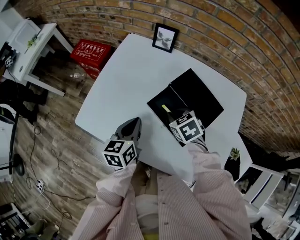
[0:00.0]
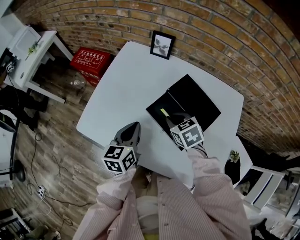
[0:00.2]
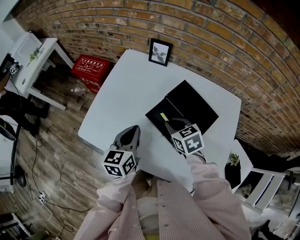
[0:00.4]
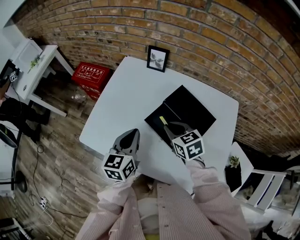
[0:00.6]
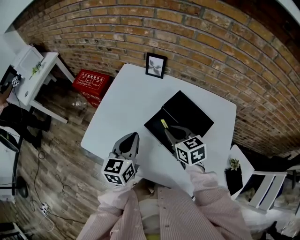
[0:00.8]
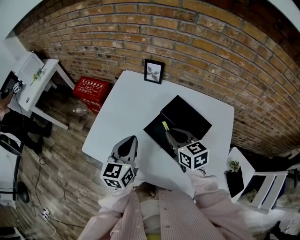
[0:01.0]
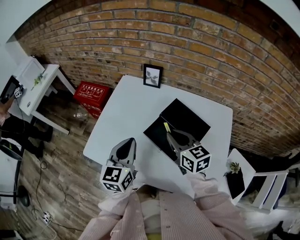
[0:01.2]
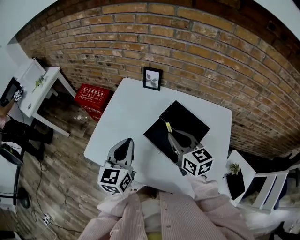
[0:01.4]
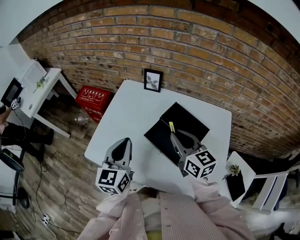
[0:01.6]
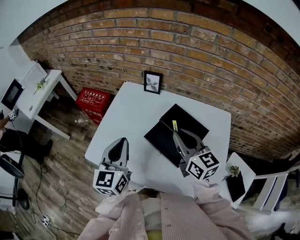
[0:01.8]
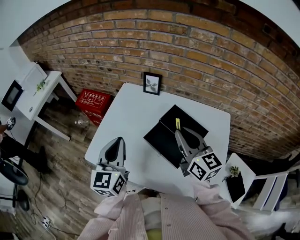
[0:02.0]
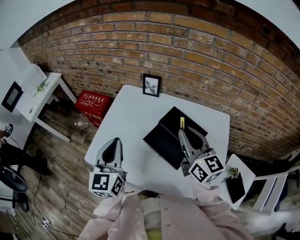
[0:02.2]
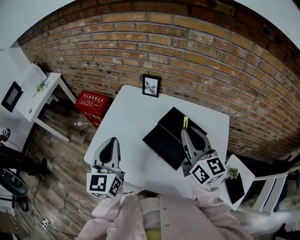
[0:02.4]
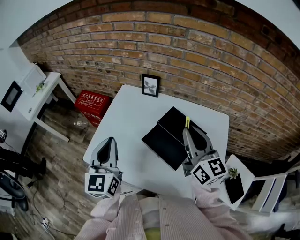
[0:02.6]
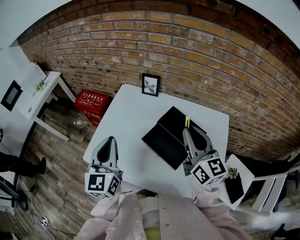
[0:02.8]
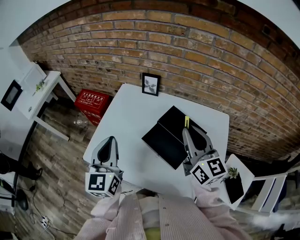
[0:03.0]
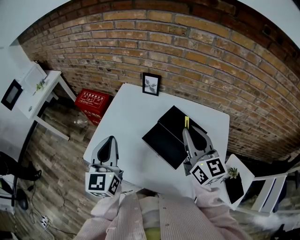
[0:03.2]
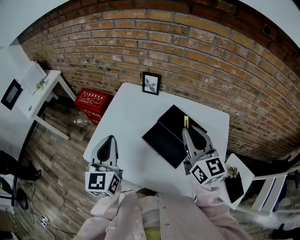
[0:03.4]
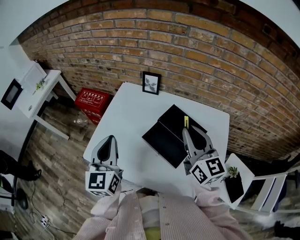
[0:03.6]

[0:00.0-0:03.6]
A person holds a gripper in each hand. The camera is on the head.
0:00.0 to 0:01.8: Both grippers travel together upward, approximately 20 cm. The right gripper points its fingers approximately 50 degrees further upward; the left gripper changes its angle by some 30 degrees.
0:01.8 to 0:03.6: The right gripper ends up about 5 cm from where it was.

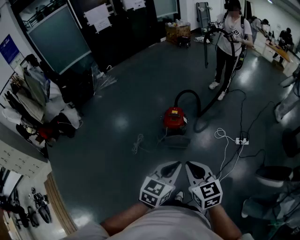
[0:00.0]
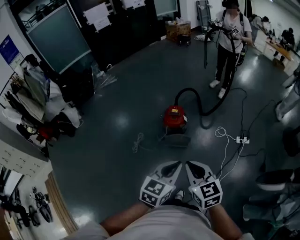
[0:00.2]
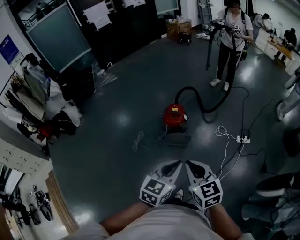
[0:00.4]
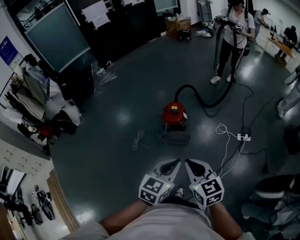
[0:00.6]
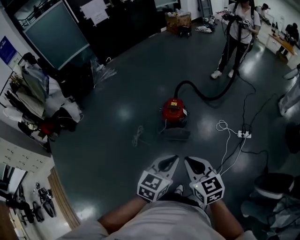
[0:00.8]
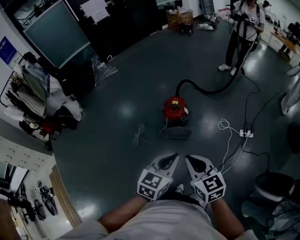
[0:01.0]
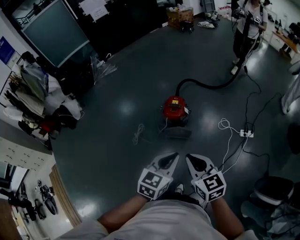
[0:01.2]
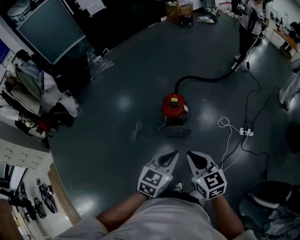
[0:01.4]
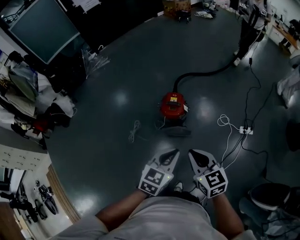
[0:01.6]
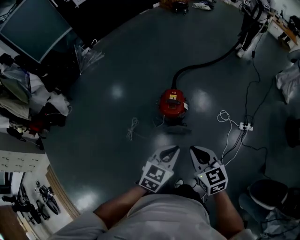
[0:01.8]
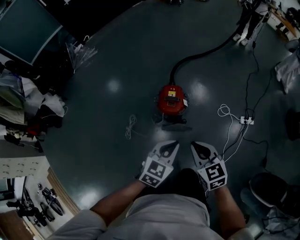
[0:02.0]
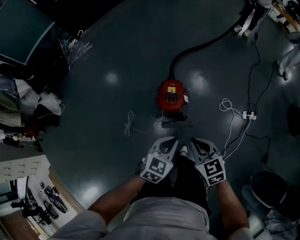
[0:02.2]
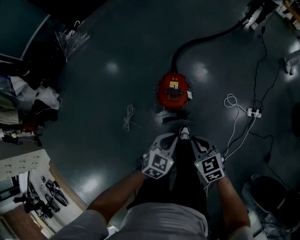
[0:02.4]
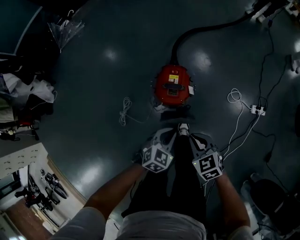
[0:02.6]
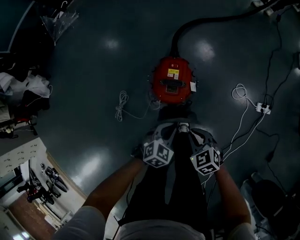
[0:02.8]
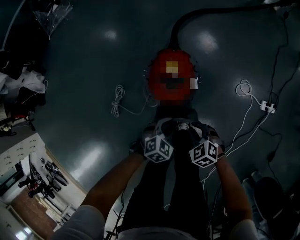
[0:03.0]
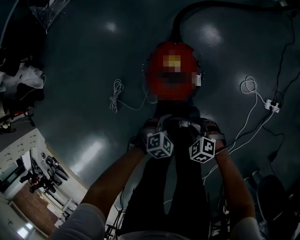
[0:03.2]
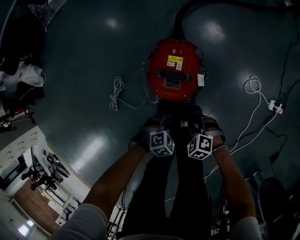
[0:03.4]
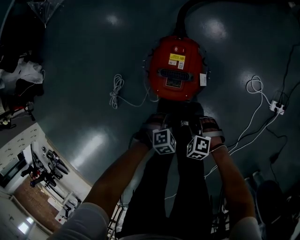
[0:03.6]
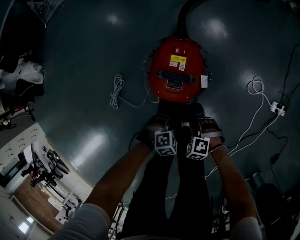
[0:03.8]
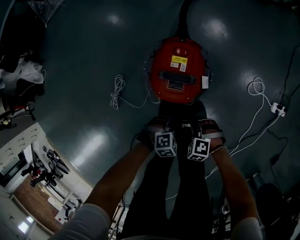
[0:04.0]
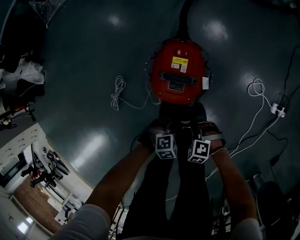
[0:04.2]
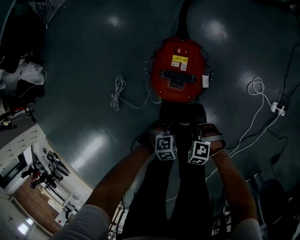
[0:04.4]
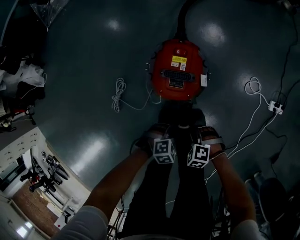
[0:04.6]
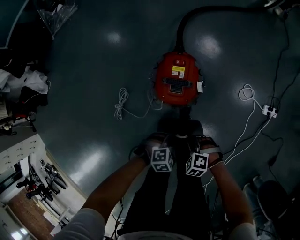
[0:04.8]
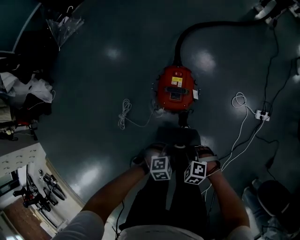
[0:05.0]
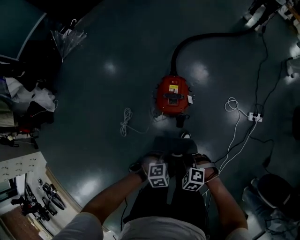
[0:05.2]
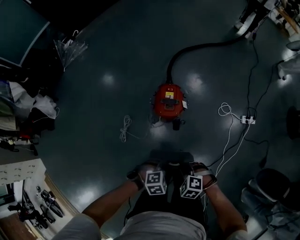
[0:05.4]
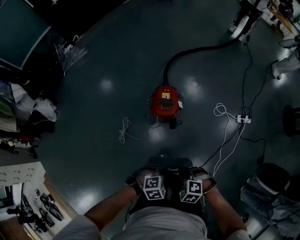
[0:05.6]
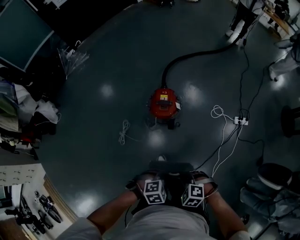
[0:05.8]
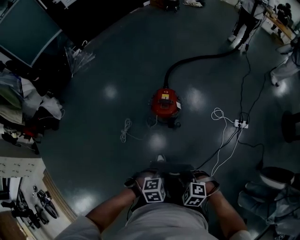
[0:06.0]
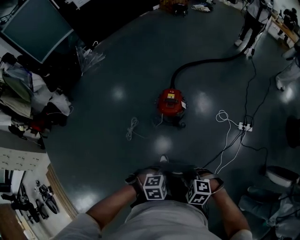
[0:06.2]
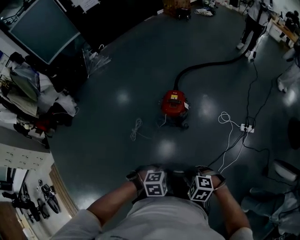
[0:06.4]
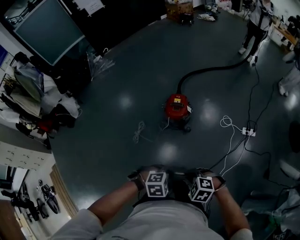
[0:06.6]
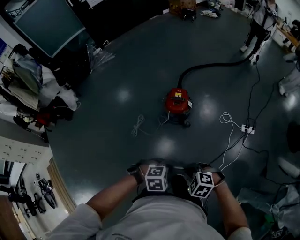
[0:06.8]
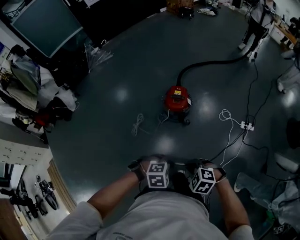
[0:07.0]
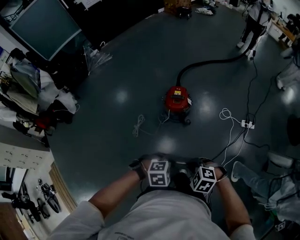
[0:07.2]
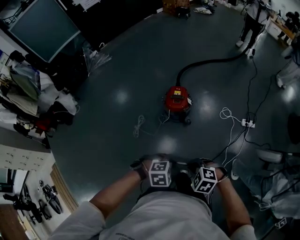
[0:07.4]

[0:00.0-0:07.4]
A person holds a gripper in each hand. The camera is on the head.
0:00.0 to 0:01.4: The two grippers go approximately 10 cm forward and downward.
0:01.4 to 0:03.0: Both grippers move downward and forward, some 60 cm. The right gripper tips its fingers downward by about 40 degrees. Meanwhile the left gripper tilts its fingers some 30 degrees downward.
0:03.0 to 0:04.4: The grippers both shift downward by some 15 cm. The right gripper rotates roughly 30 degrees, and opens and closes again; the left gripper turns by roughly 20 degrees.
0:04.4 to 0:06.0: The two grippers go approximately 50 cm upward.
0:06.0 to 0:07.4: The grippers both shift upward by about 5 cm.

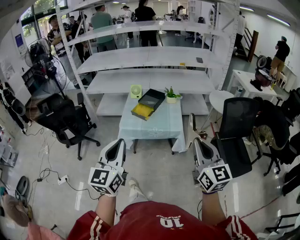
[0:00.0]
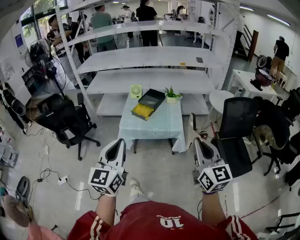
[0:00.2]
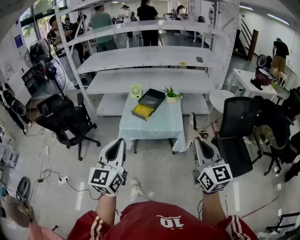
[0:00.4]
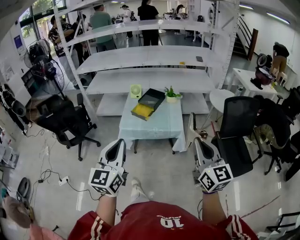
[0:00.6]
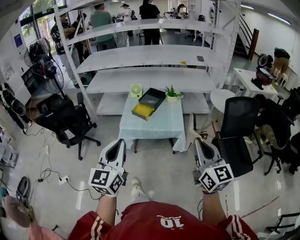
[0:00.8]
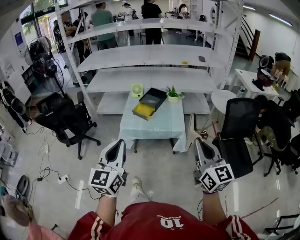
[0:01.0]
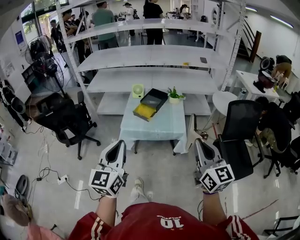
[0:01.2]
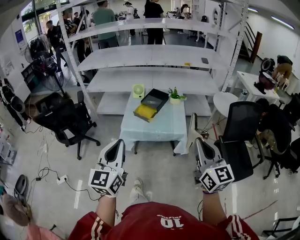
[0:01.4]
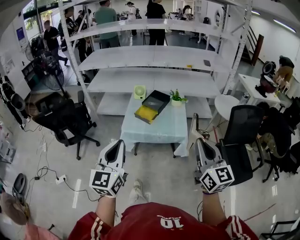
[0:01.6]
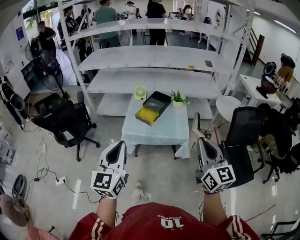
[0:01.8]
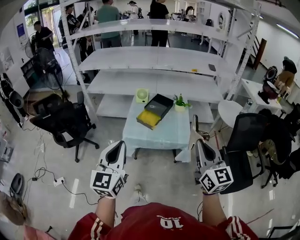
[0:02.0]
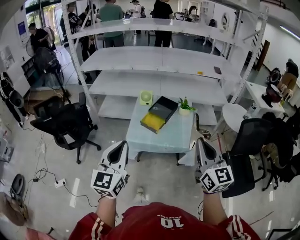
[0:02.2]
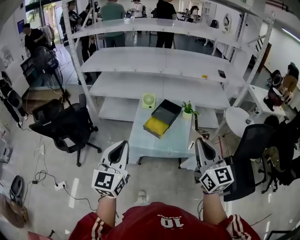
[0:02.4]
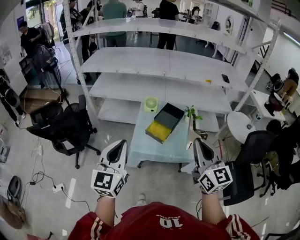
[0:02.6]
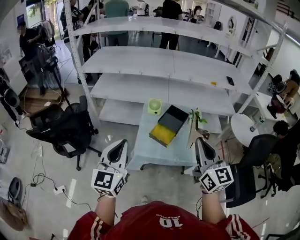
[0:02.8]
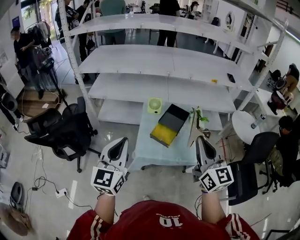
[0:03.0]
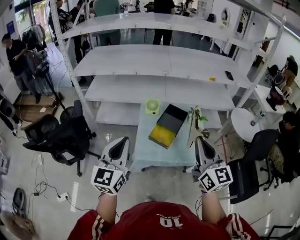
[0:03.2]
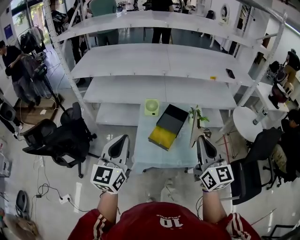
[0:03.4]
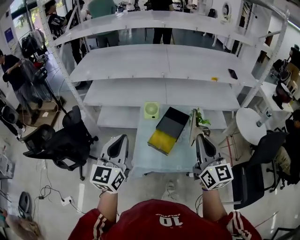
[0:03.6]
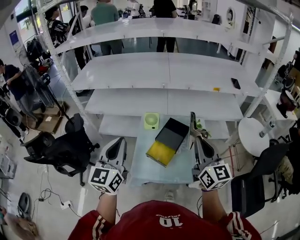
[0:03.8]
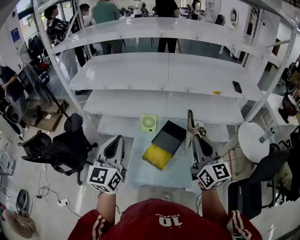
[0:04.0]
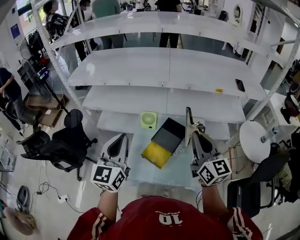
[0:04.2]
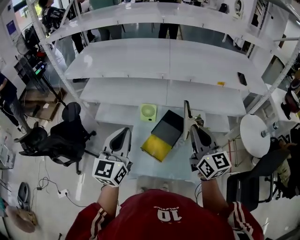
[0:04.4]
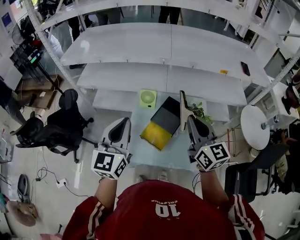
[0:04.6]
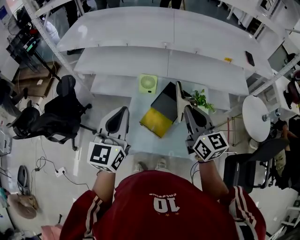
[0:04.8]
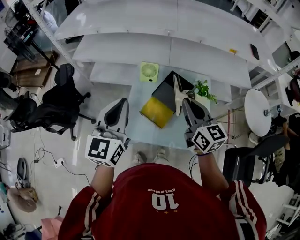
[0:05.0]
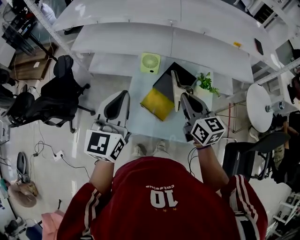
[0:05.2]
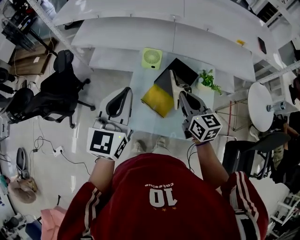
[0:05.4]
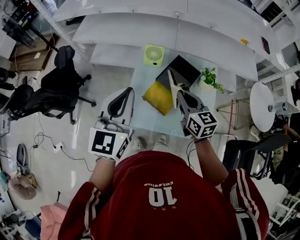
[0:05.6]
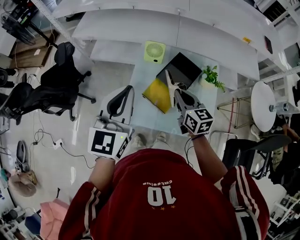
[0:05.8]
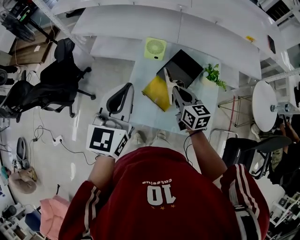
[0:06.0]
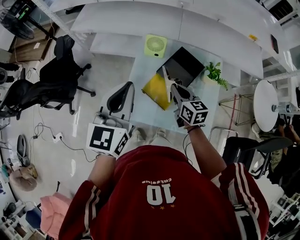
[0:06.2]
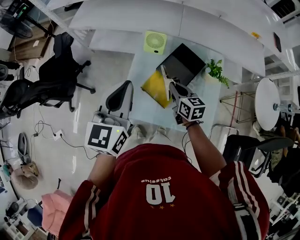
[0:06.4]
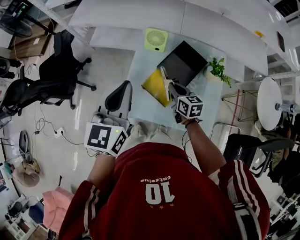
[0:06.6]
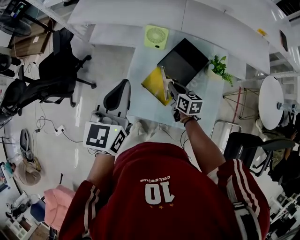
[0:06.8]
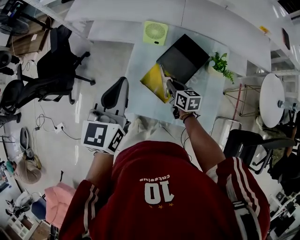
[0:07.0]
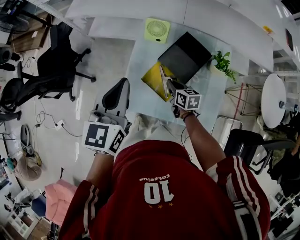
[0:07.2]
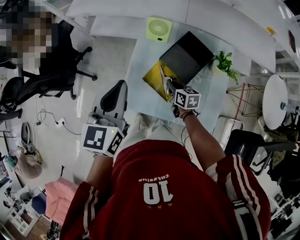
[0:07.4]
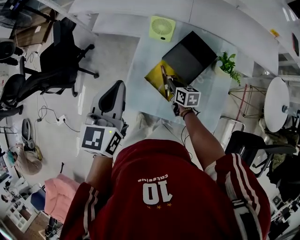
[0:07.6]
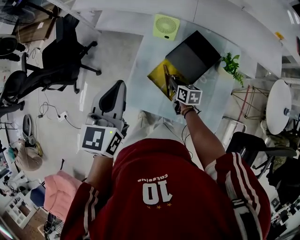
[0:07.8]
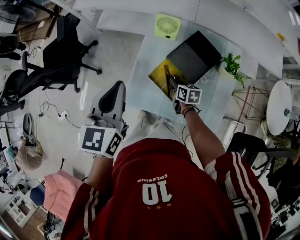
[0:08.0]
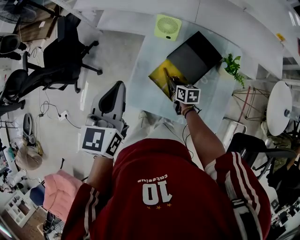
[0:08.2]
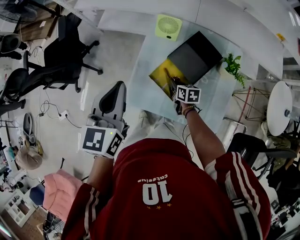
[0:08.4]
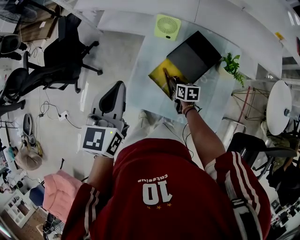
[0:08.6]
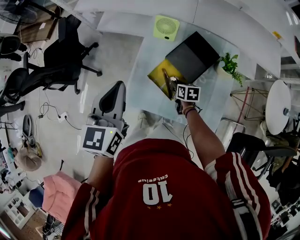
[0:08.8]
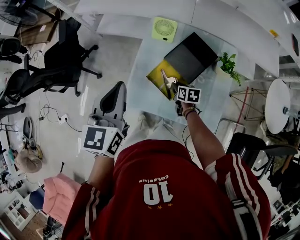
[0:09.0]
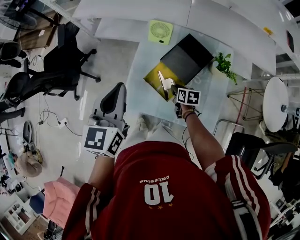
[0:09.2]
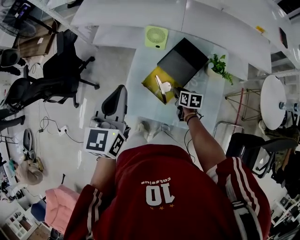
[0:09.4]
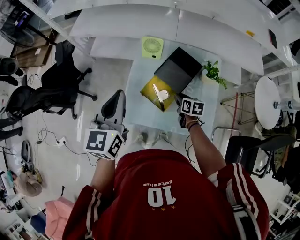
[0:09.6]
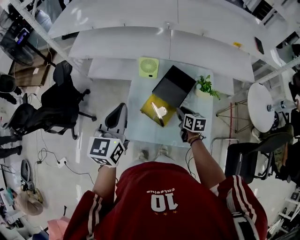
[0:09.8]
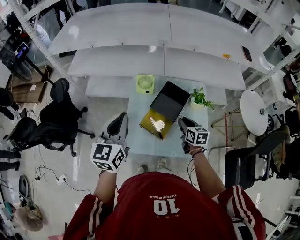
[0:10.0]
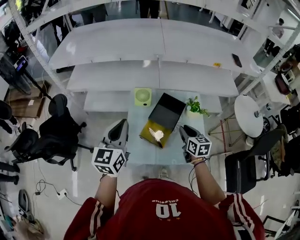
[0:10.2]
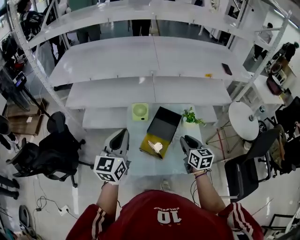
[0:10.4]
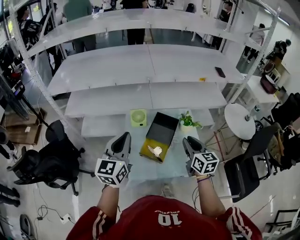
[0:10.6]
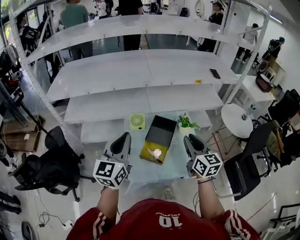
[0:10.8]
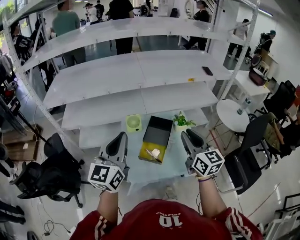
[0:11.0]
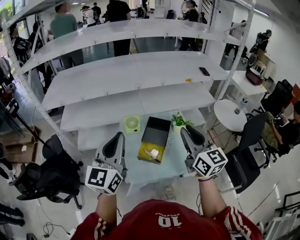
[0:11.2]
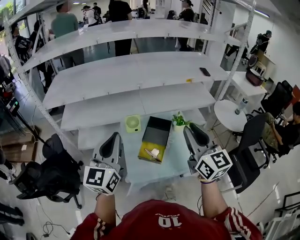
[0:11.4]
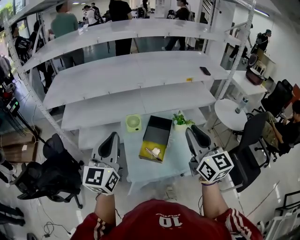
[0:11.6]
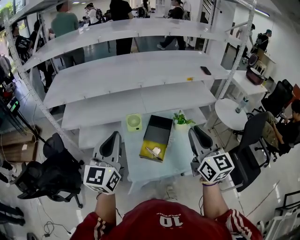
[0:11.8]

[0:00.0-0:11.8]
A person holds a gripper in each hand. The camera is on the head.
0:00.0 to 0:01.4: The left gripper moves some 5 cm. The right gripper travels forward by approximately 5 cm.
0:01.4 to 0:03.0: Both grippers travel together forward and to the left, some 40 cm.
0:03.0 to 0:04.4: The right gripper heads forward, covering some 25 cm. The left gripper goes about 25 cm forward and to the right.
0:04.4 to 0:06.0: The right gripper shifts roughly 25 cm downward, and swivels approximately 30 degrees, while the left gripper travels downward by approximately 10 cm.
0:06.0 to 0:07.4: The left gripper heads downward, covering about 10 cm, while the right gripper goes approximately 20 cm downward, and swivels roughly 20 degrees.
0:07.4 to 0:08.8: The right gripper travels downward by roughly 5 cm.
0:08.8 to 0:10.4: The right gripper shifts some 35 cm upward, and rotates roughly 40 degrees. The left gripper shifts approximately 10 cm upward, and rotates approximately 20 degrees.
0:10.4 to 0:11.8: The left gripper shifts about 15 cm upward and backward, while the right gripper travels upward and backward by about 30 cm, and rotates some 30 degrees.

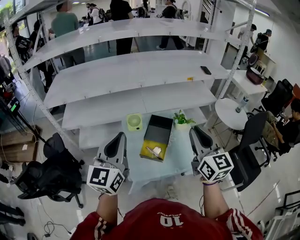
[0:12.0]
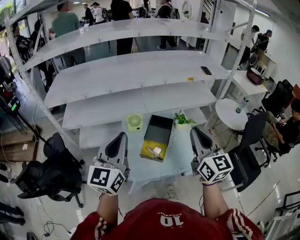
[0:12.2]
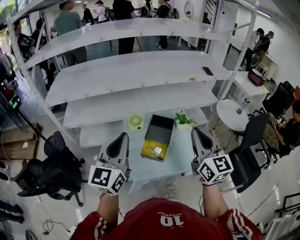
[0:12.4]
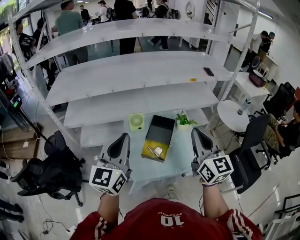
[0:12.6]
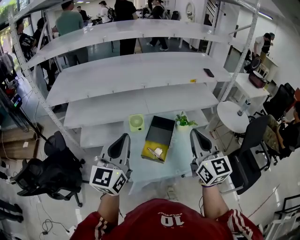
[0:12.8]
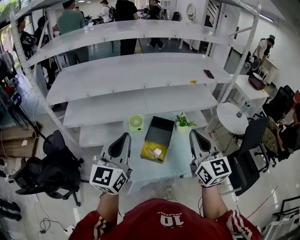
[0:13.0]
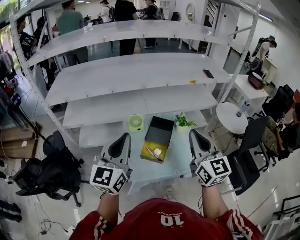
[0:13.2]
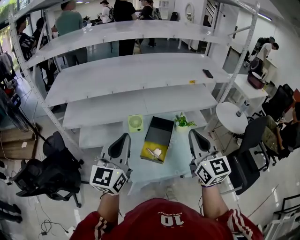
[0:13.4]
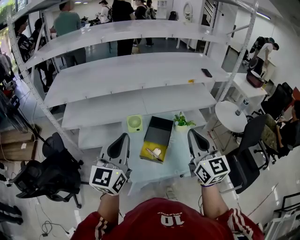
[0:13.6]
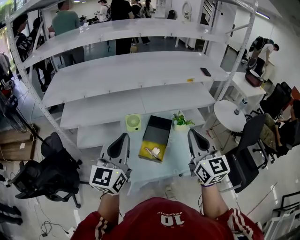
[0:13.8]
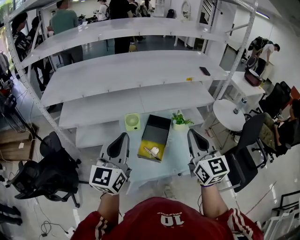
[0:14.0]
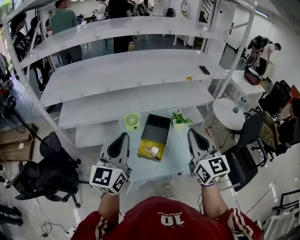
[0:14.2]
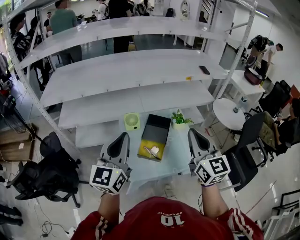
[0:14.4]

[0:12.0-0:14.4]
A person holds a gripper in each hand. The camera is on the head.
0:12.0 to 0:14.4: The grippers make only small movements.
